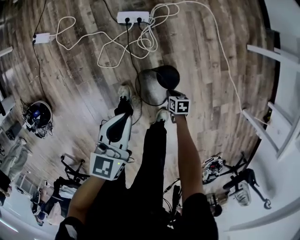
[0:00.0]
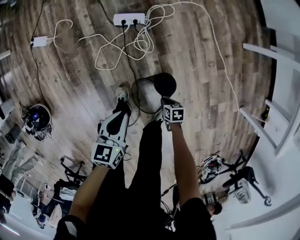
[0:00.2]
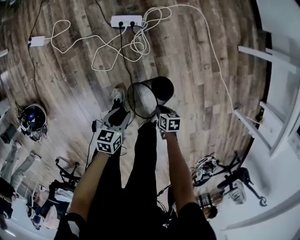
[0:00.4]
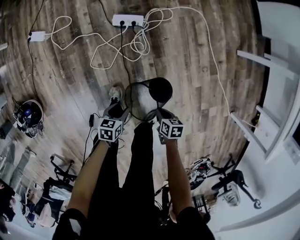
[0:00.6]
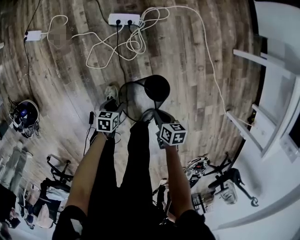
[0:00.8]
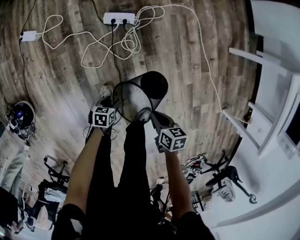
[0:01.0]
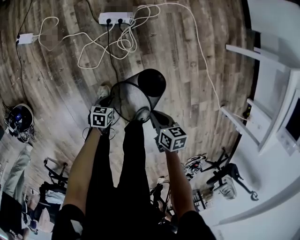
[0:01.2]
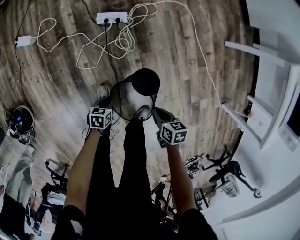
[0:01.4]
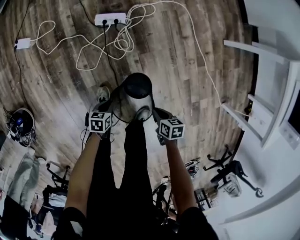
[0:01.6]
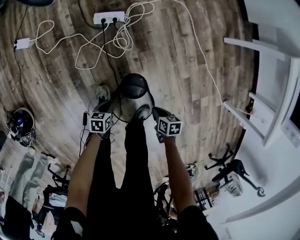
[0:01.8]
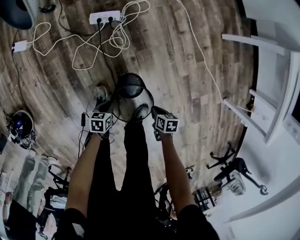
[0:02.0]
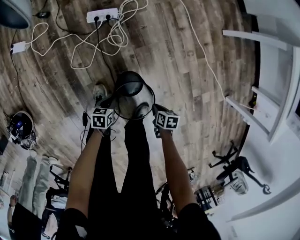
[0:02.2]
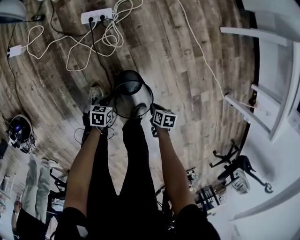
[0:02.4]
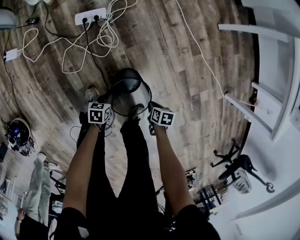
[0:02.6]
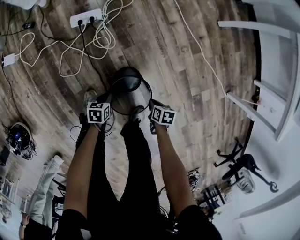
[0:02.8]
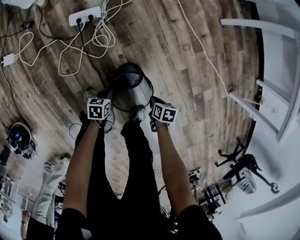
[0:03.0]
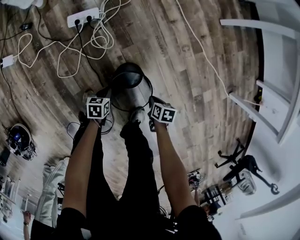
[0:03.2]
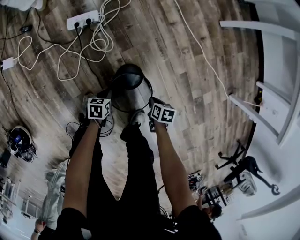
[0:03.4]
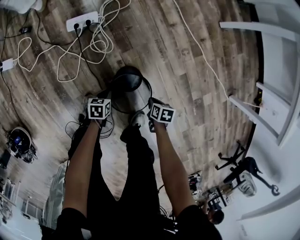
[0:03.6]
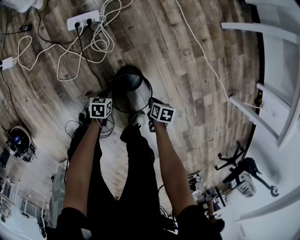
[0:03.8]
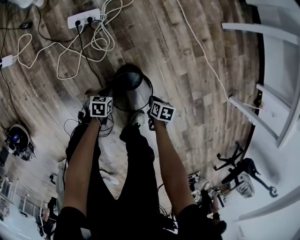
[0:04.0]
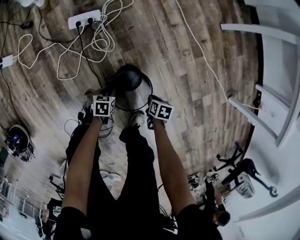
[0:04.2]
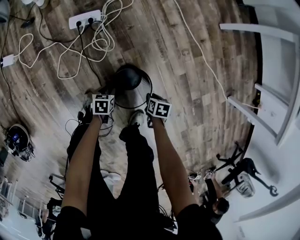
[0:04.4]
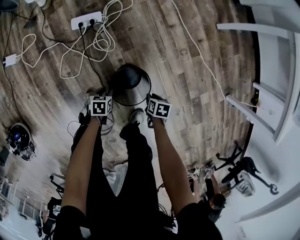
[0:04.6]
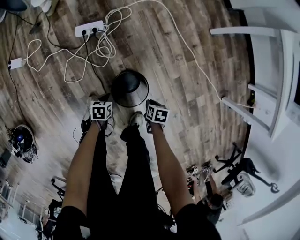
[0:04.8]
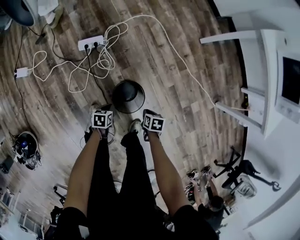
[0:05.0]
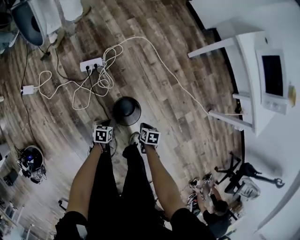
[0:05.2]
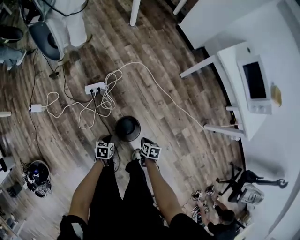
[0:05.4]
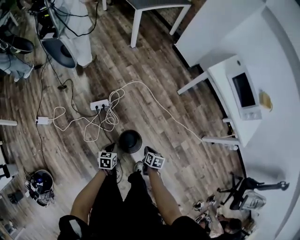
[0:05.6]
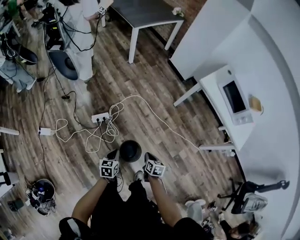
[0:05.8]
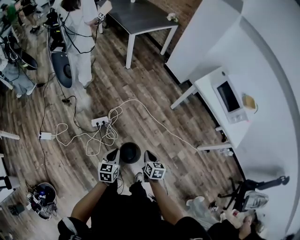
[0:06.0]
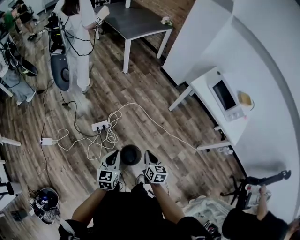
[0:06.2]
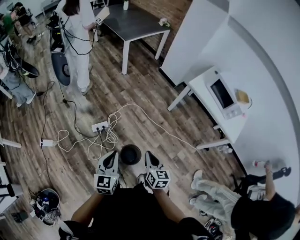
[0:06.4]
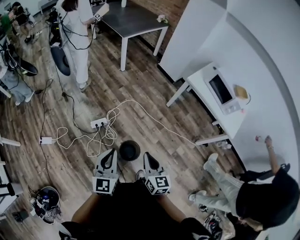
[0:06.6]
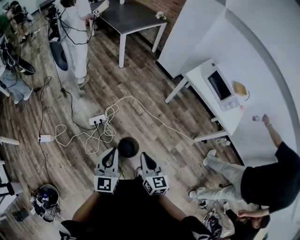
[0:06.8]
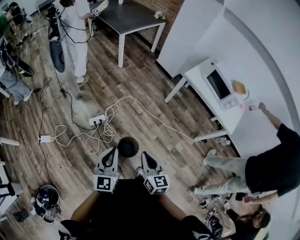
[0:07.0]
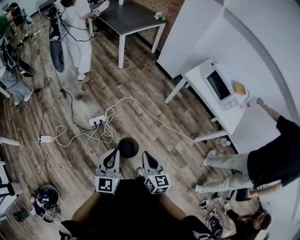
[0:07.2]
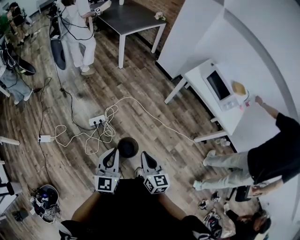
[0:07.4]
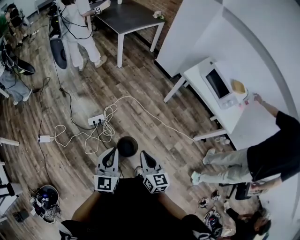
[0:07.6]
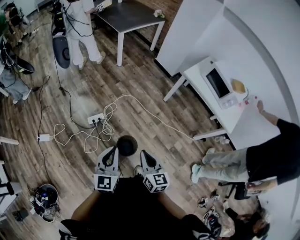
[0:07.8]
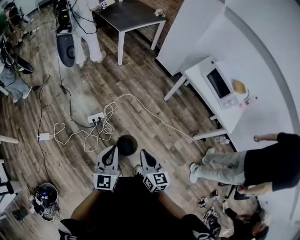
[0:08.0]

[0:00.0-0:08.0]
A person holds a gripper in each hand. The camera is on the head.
0:00.0 to 0:01.6: The right gripper heads upward and backward, covering roughly 15 cm; the left gripper moves downward and backward, about 30 cm, changes its angle by approximately 40 degrees, and opens and closes again.
0:01.6 to 0:03.2: The two grippers go some 15 cm downward. The right gripper turns by approximately 20 degrees.
0:03.2 to 0:04.8: Both grippers travel together upward, some 5 cm. The left gripper opens and closes again.
0:04.8 to 0:06.4: The grippers both shift upward by about 70 cm. The right gripper points its fingers some 50 degrees further upward. Meanwhile the left gripper tips its fingers upward by about 50 degrees.
0:06.4 to 0:08.0: The right gripper is displaced upward and backward by some 5 cm, while the left gripper ends up some 5 cm from where it was.

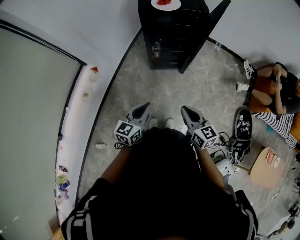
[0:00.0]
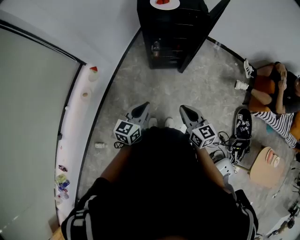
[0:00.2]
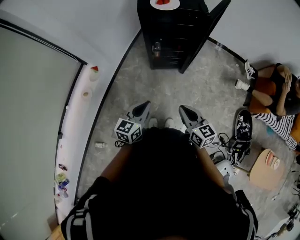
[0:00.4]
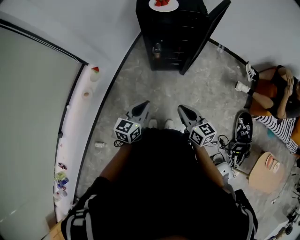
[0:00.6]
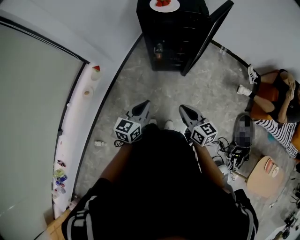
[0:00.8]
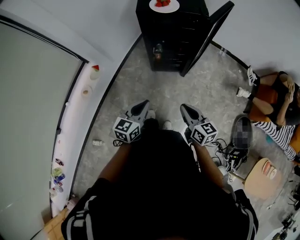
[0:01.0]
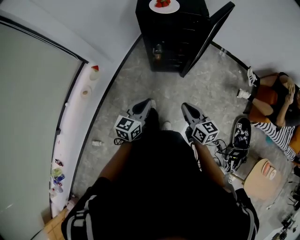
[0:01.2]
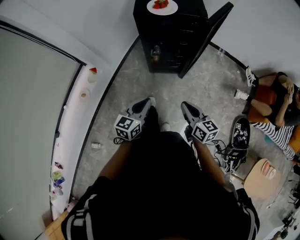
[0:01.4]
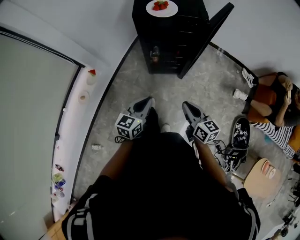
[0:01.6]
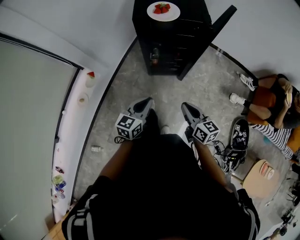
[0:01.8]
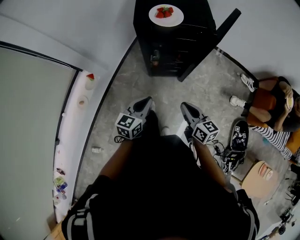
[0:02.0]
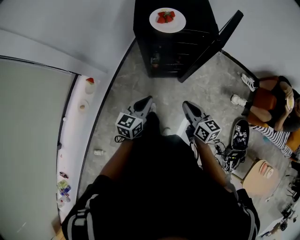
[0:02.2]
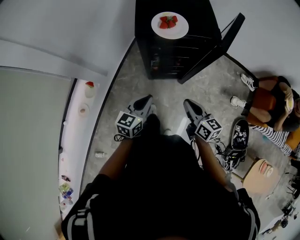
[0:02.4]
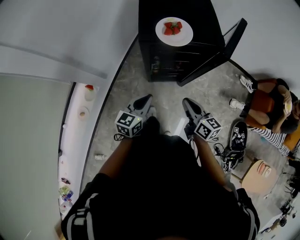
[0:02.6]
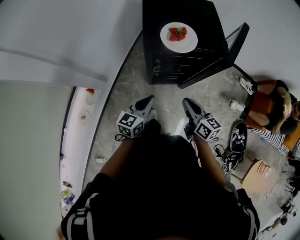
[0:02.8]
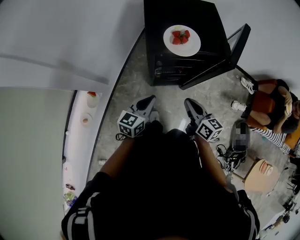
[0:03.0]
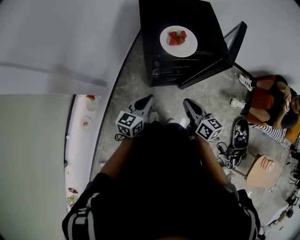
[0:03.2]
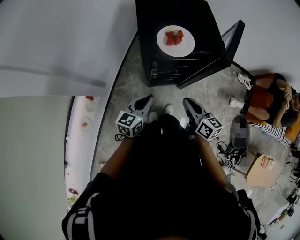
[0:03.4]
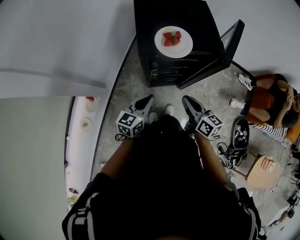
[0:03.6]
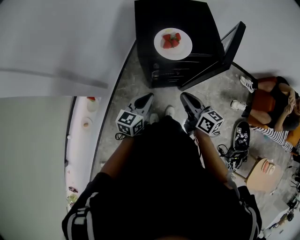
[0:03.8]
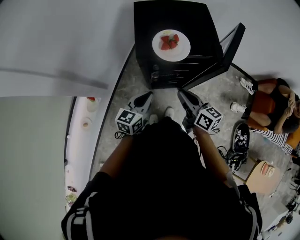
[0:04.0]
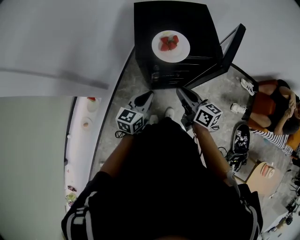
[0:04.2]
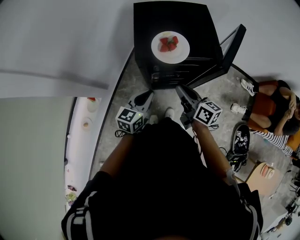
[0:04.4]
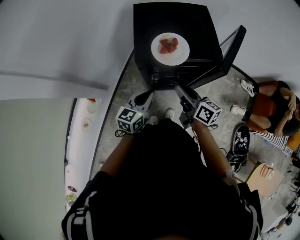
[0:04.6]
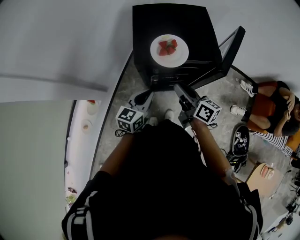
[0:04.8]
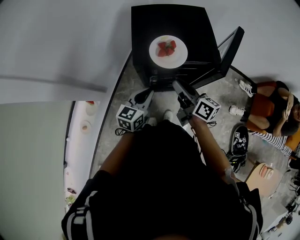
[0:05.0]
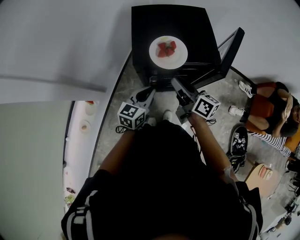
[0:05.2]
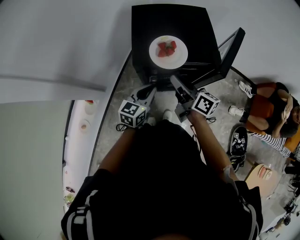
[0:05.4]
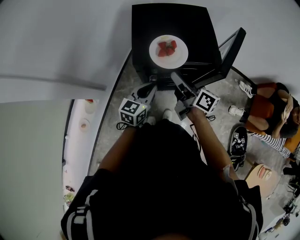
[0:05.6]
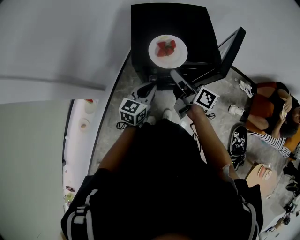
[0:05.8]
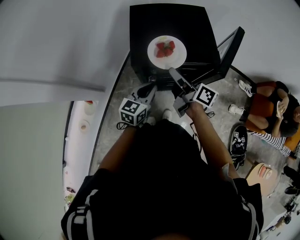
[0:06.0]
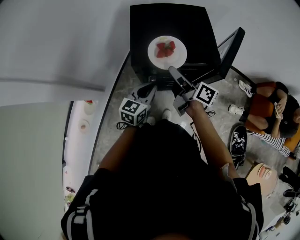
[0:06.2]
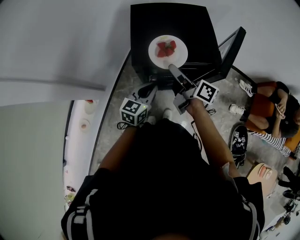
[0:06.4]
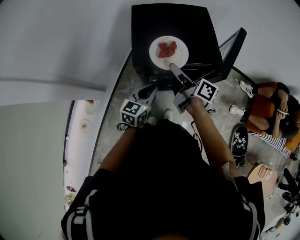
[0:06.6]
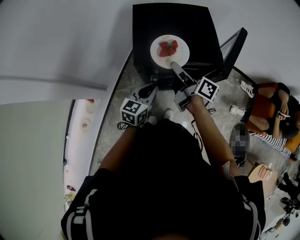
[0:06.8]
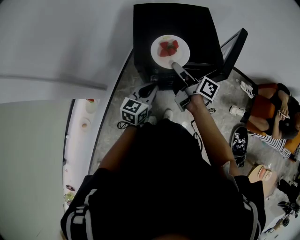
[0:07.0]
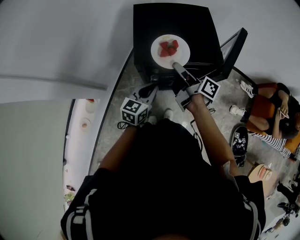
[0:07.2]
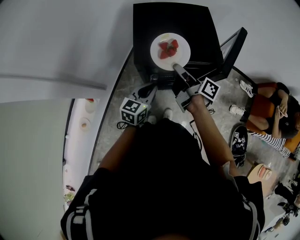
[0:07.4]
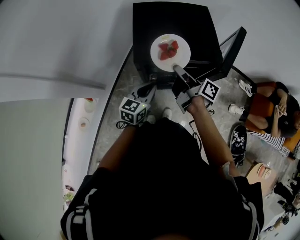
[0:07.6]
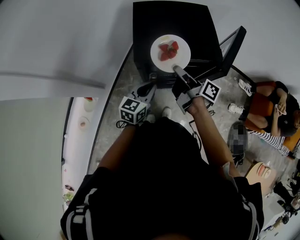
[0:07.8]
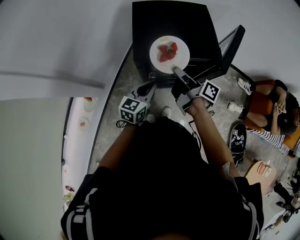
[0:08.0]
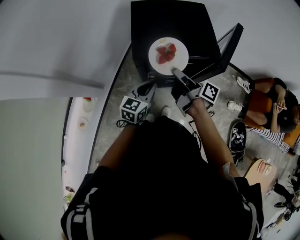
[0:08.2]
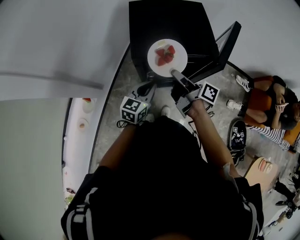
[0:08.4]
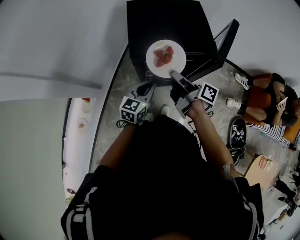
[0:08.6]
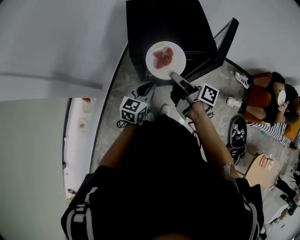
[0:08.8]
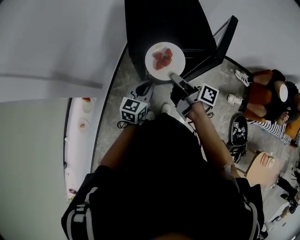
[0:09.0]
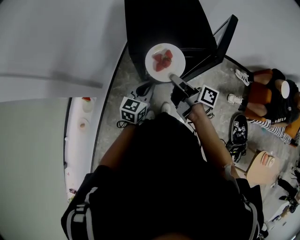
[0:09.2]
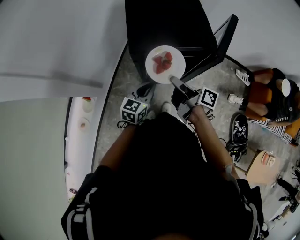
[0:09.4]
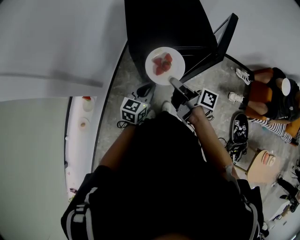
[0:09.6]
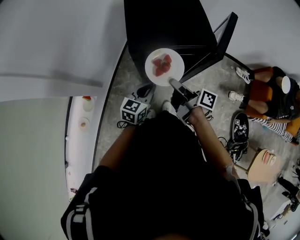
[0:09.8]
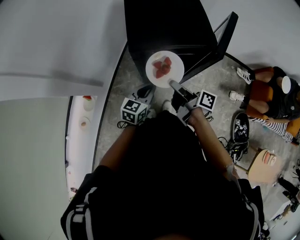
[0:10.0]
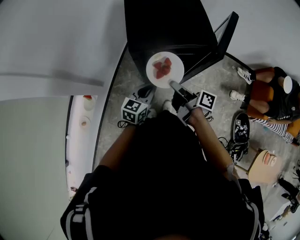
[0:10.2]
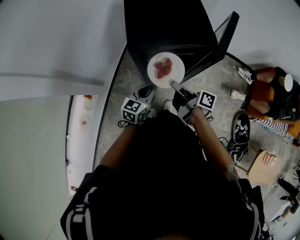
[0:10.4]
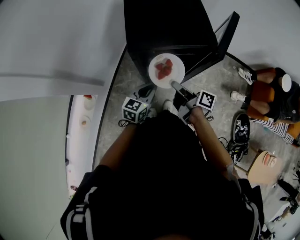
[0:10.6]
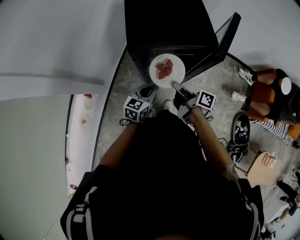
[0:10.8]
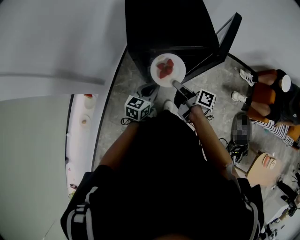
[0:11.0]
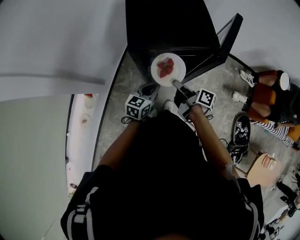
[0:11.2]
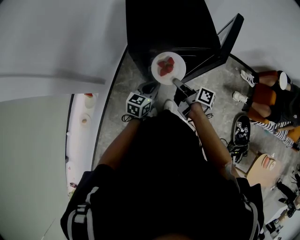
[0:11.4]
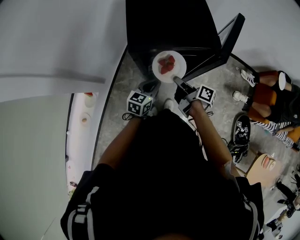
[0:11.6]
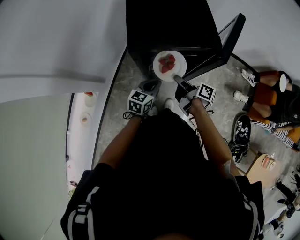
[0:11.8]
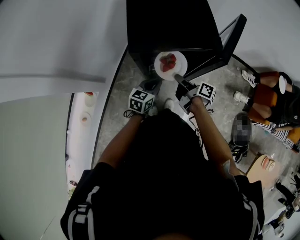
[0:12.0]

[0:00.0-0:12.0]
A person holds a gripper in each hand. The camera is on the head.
0:00.0 to 0:01.6: The two grippers go roughly 10 cm forward and to the right.
0:01.6 to 0:03.0: The right gripper shifts approximately 25 cm forward and to the left; the left gripper shifts approximately 25 cm forward.
0:03.0 to 0:04.4: The left gripper is displaced forward by about 5 cm, while the right gripper shifts some 10 cm forward.
0:04.4 to 0:06.0: The left gripper goes some 5 cm forward, while the right gripper travels forward by about 10 cm, rotates some 20 degrees, and opens up.
0:06.0 to 0:07.6: The right gripper closes its fingers.
0:07.6 to 0:09.0: The right gripper is displaced backward by some 5 cm.
0:09.0 to 0:10.4: The right gripper changes place by approximately 5 cm.
0:10.4 to 0:12.0: The two grippers go approximately 5 cm downward.

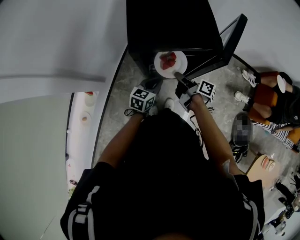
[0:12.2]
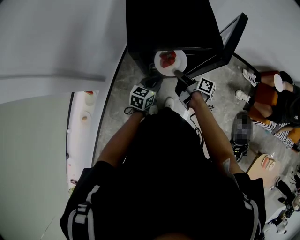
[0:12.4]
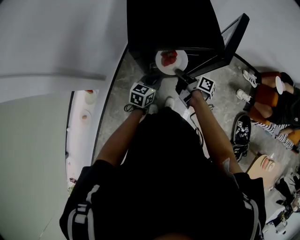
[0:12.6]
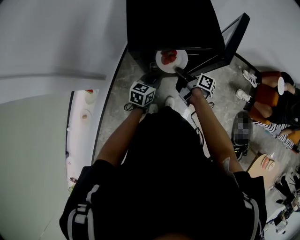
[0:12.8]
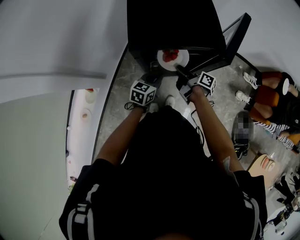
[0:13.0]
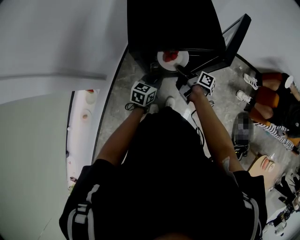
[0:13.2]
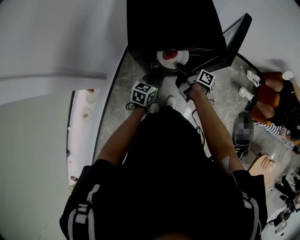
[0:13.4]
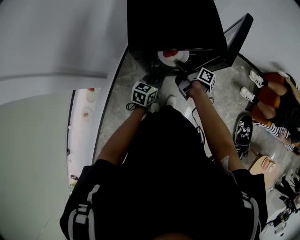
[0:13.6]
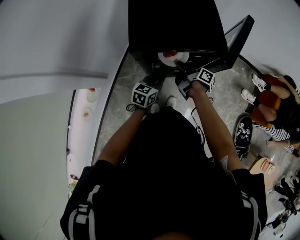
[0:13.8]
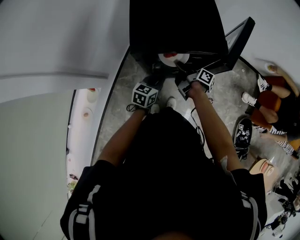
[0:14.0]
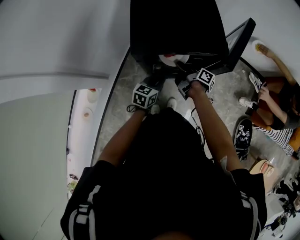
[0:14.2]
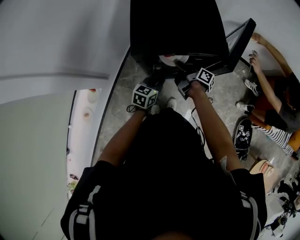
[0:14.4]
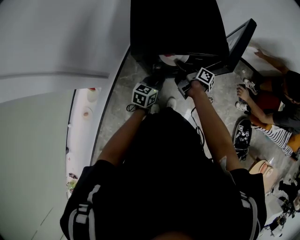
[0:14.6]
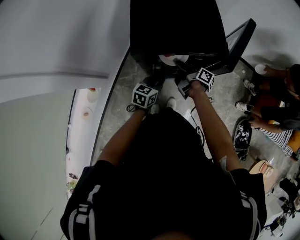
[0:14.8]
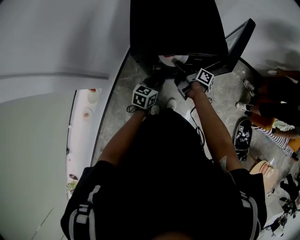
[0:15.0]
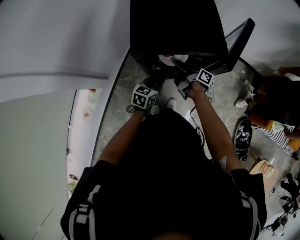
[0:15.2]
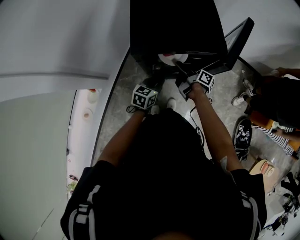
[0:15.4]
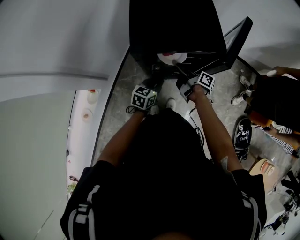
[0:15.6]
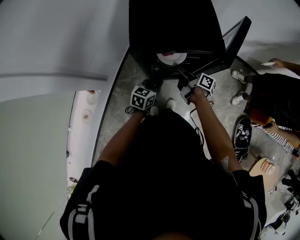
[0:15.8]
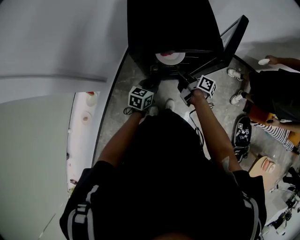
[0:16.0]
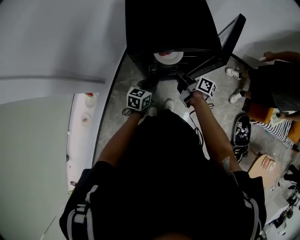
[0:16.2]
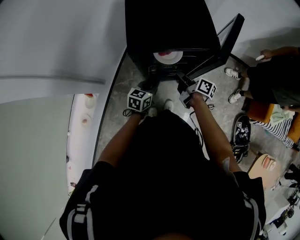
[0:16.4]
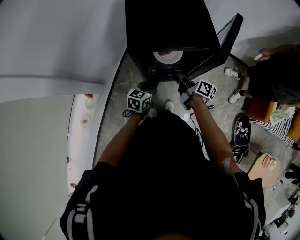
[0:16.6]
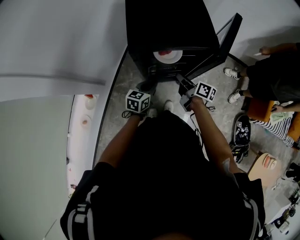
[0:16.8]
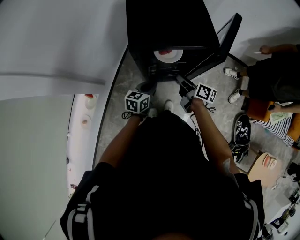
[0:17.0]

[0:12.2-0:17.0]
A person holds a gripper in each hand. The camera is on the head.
0:12.2 to 0:13.8: The right gripper moves forward, some 5 cm.
0:13.8 to 0:15.4: The right gripper opens up.
0:15.4 to 0:17.0: The right gripper heads backward, covering about 10 cm, swivels roughly 30 degrees, and closes.
